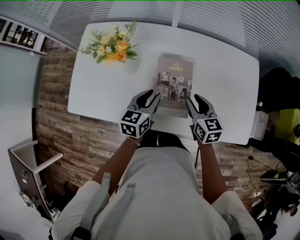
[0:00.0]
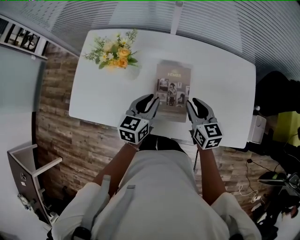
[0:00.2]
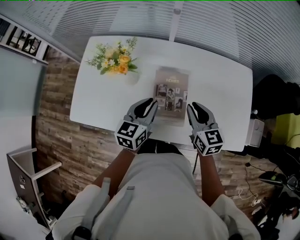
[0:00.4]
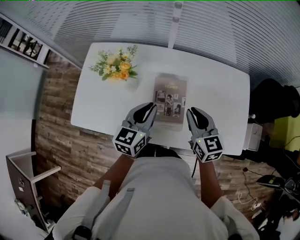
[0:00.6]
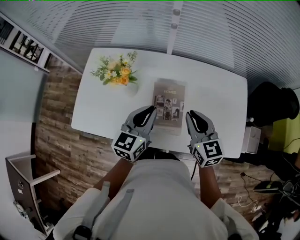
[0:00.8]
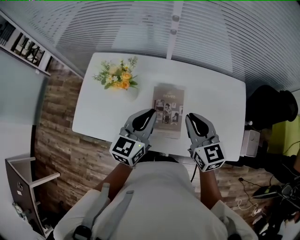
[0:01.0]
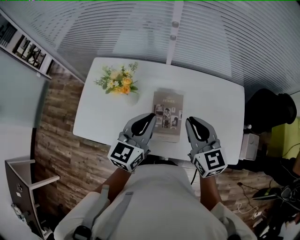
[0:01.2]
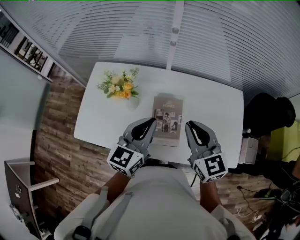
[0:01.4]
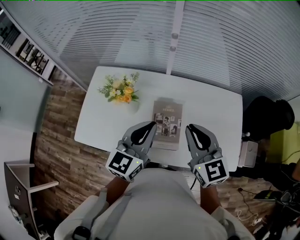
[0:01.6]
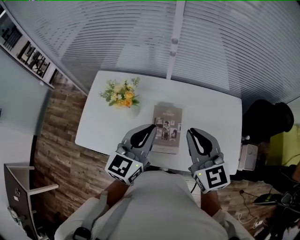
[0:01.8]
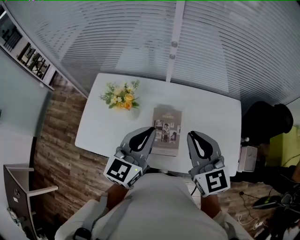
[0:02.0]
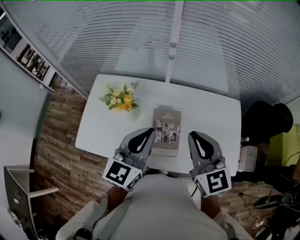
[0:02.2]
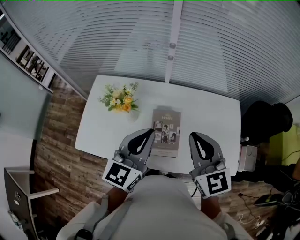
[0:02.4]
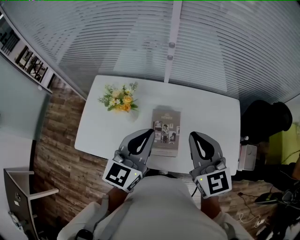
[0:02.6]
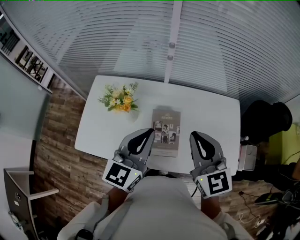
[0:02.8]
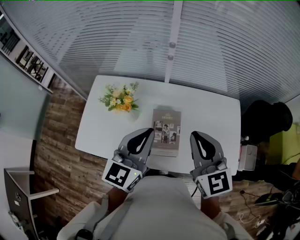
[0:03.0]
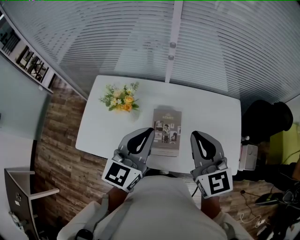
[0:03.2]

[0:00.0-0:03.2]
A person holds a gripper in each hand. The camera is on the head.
0:00.0 to 0:01.6: The grippers both shift upward by roughly 25 cm. The right gripper changes its angle by about 30 degrees, and closes. The left gripper turns by about 30 degrees, and closes up.
0:01.6 to 0:03.2: The right gripper ends up roughly 5 cm from where it was.

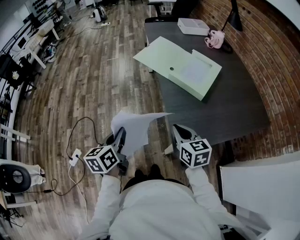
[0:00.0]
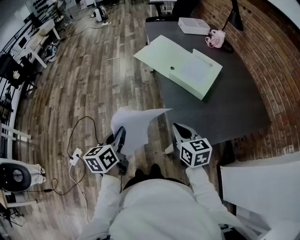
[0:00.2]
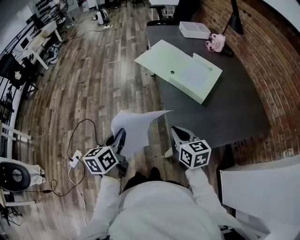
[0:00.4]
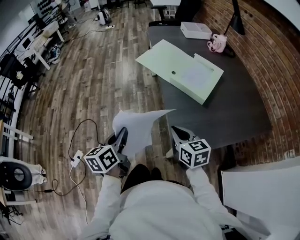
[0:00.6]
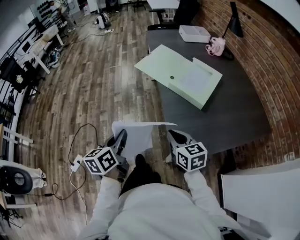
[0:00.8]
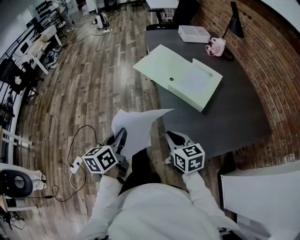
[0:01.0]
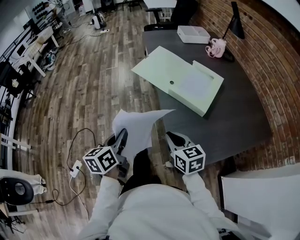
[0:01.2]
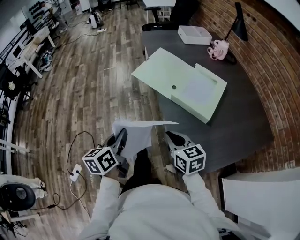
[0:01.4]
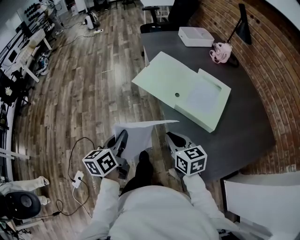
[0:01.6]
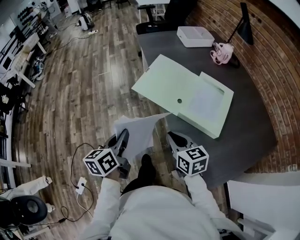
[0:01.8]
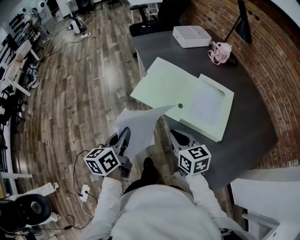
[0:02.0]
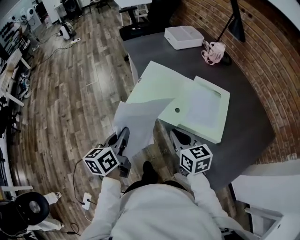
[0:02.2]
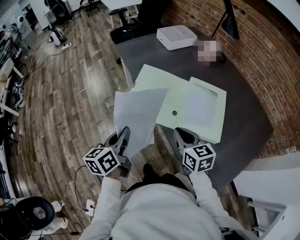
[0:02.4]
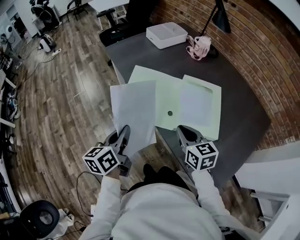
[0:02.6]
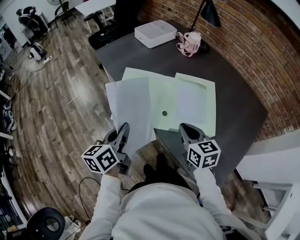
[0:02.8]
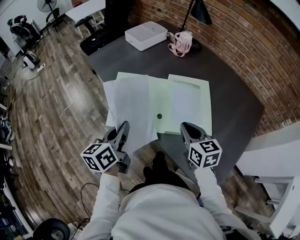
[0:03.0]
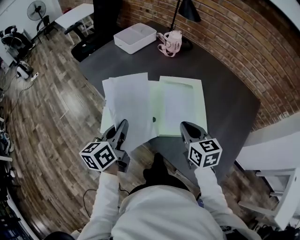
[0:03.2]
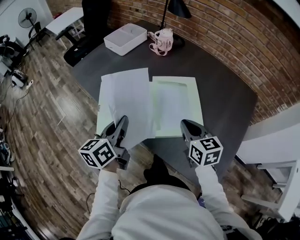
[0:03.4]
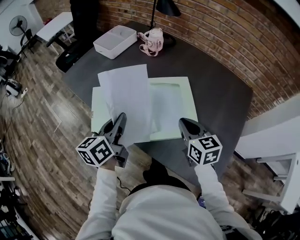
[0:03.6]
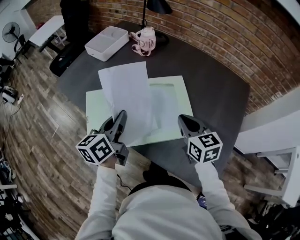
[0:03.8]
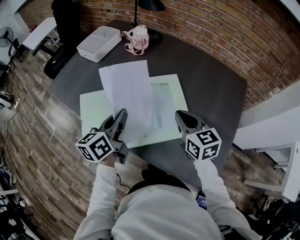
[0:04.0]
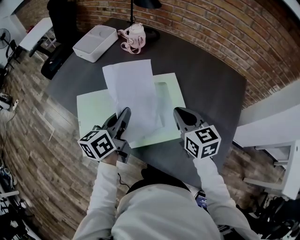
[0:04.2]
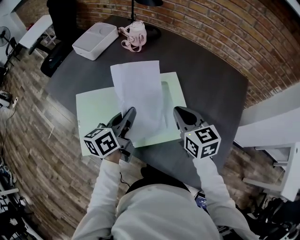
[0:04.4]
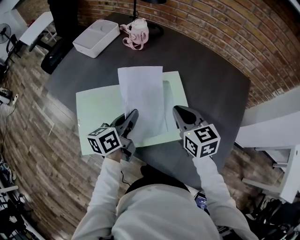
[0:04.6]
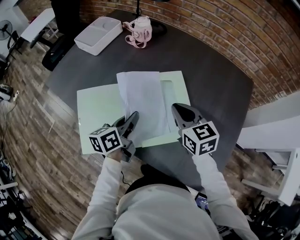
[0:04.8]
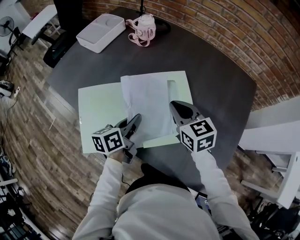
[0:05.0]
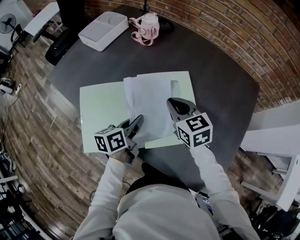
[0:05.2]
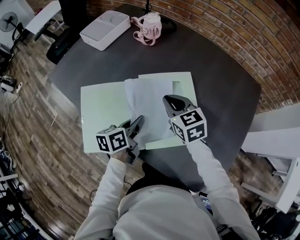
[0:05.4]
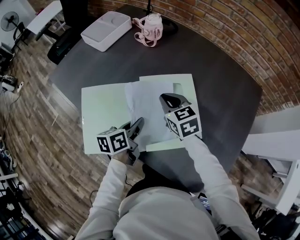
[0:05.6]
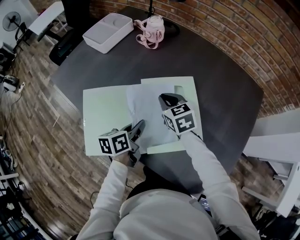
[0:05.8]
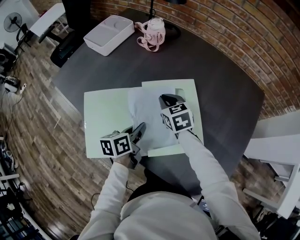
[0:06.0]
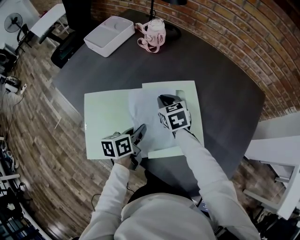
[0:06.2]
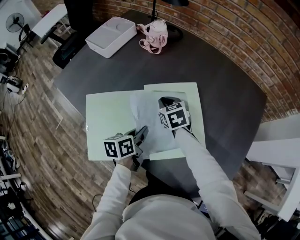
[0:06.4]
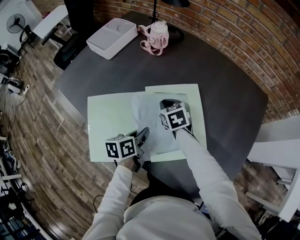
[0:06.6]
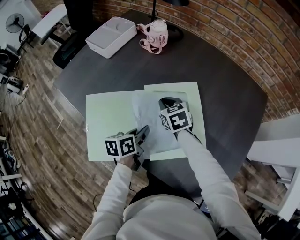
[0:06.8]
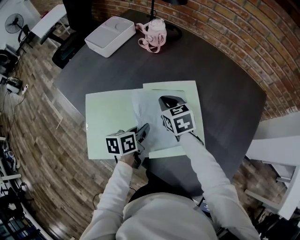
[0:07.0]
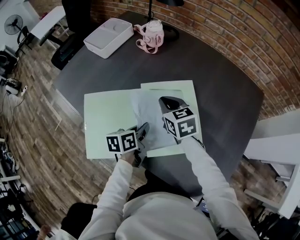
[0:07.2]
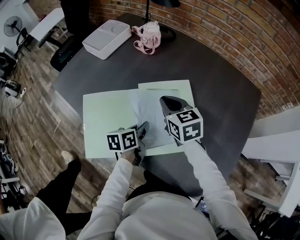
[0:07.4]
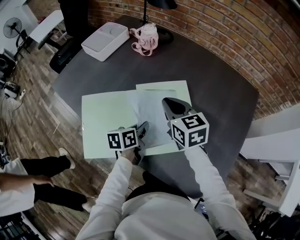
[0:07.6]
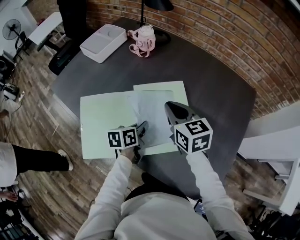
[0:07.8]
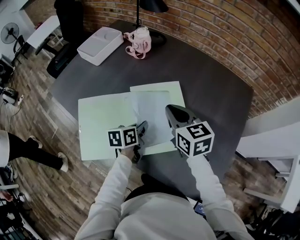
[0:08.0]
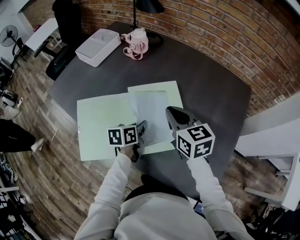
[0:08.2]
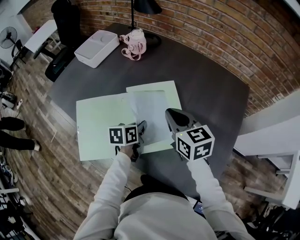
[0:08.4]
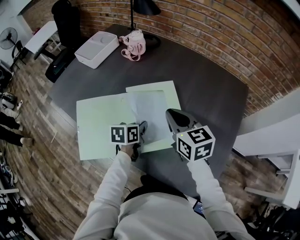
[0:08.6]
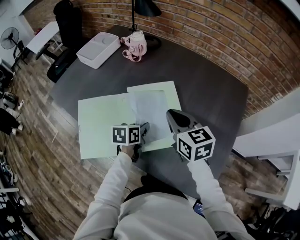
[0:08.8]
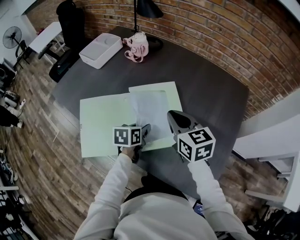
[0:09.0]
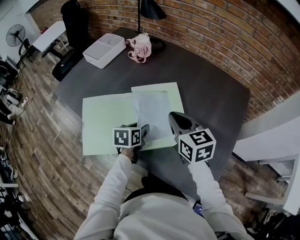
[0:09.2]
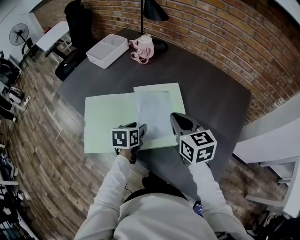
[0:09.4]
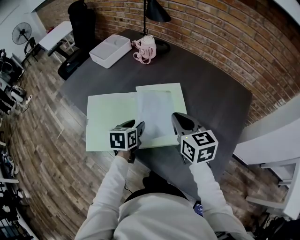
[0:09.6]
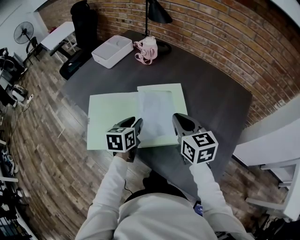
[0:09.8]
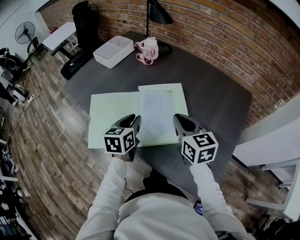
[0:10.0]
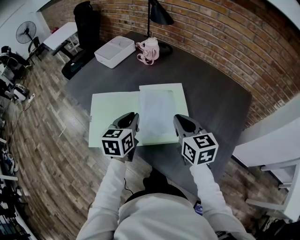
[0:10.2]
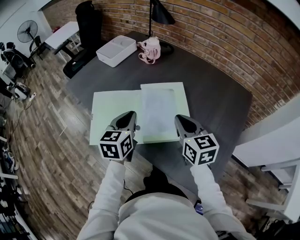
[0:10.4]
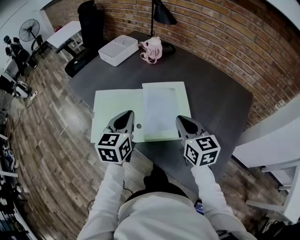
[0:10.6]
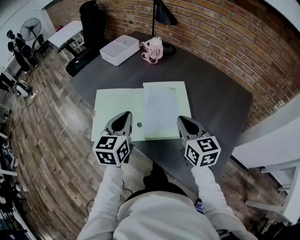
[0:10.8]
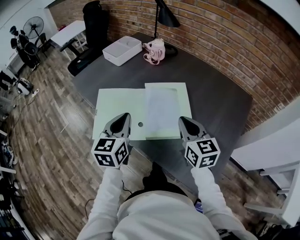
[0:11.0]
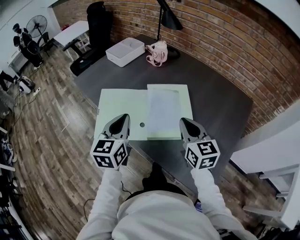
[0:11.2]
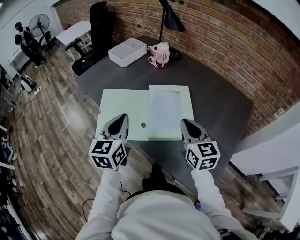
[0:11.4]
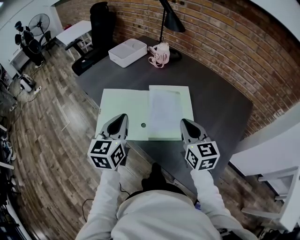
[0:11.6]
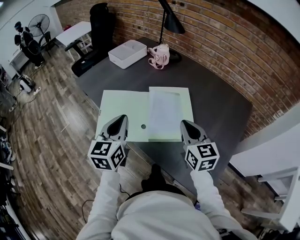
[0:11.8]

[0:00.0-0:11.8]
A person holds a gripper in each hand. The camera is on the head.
0:00.0 to 0:01.4: The grippers both shift forward by about 15 cm.
0:01.4 to 0:03.0: The left gripper ends up approximately 30 cm from where it was, and rotates about 30 degrees. Meanwhile the right gripper changes place by about 25 cm, and changes its angle by approximately 40 degrees.
0:03.0 to 0:04.4: The right gripper shifts about 15 cm forward and to the right; the left gripper heads forward and to the right, covering some 25 cm, and changes its angle by roughly 20 degrees.
0:04.4 to 0:06.0: The left gripper is displaced downward by roughly 10 cm, while the right gripper moves forward, downward and to the left, roughly 20 cm.
0:06.0 to 0:07.4: The right gripper shifts approximately 5 cm upward.
0:07.4 to 0:08.8: The right gripper shifts some 15 cm to the right, backward and upward. Meanwhile the left gripper is displaced to the right by roughly 5 cm.
0:08.8 to 0:10.4: The left gripper is displaced upward and to the left by some 15 cm, changes its angle by about 30 degrees, and opens, then closes once more. The right gripper moves backward, some 5 cm.
0:10.4 to 0:11.8: The left gripper moves to the left, backward and upward, some 10 cm.

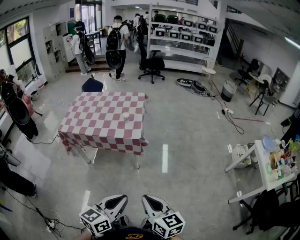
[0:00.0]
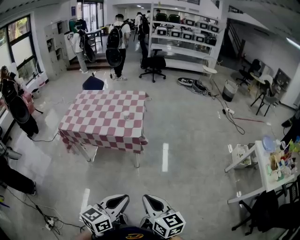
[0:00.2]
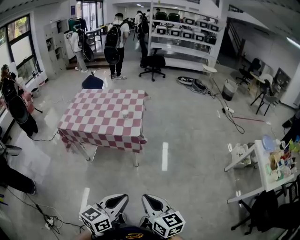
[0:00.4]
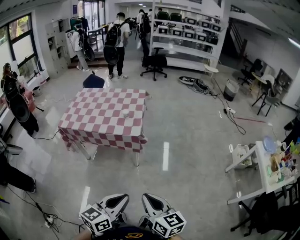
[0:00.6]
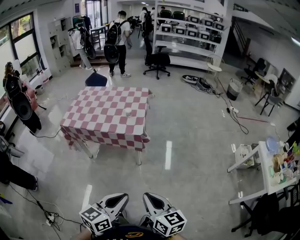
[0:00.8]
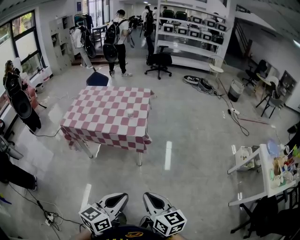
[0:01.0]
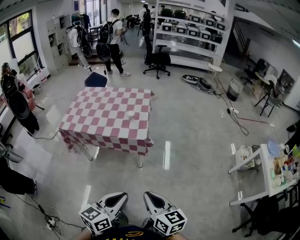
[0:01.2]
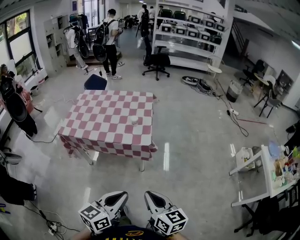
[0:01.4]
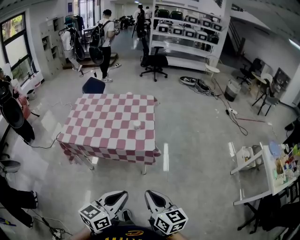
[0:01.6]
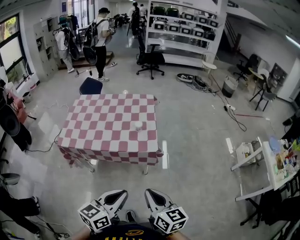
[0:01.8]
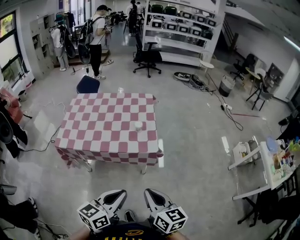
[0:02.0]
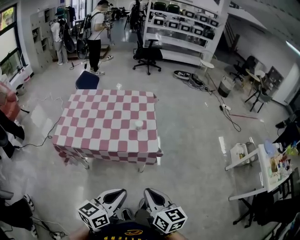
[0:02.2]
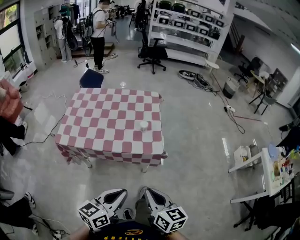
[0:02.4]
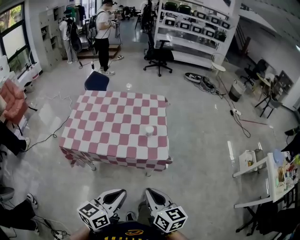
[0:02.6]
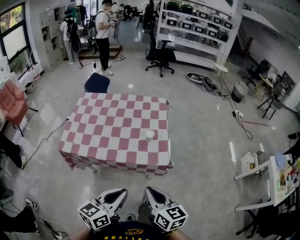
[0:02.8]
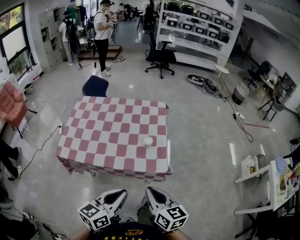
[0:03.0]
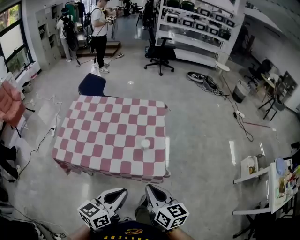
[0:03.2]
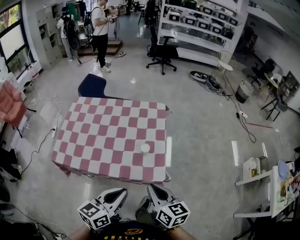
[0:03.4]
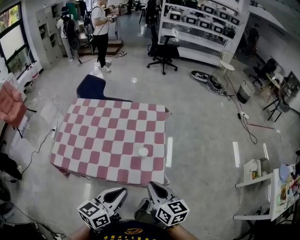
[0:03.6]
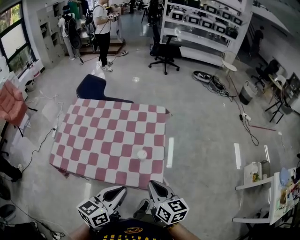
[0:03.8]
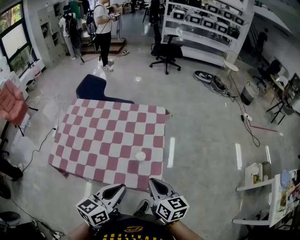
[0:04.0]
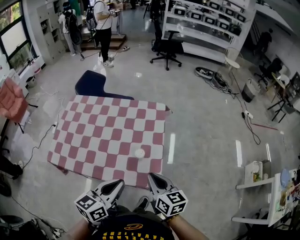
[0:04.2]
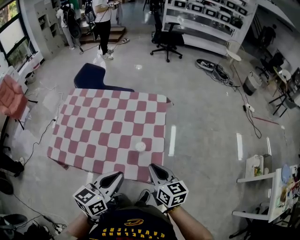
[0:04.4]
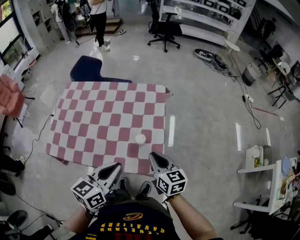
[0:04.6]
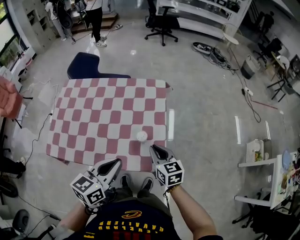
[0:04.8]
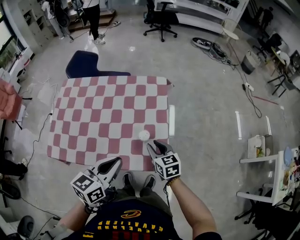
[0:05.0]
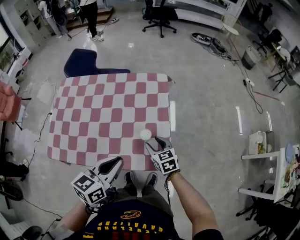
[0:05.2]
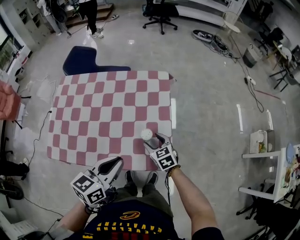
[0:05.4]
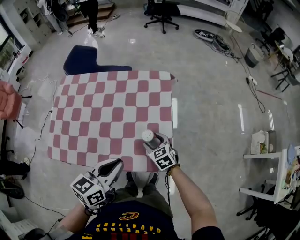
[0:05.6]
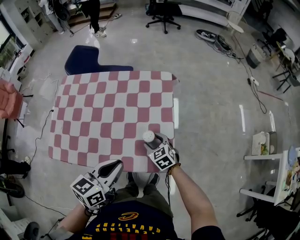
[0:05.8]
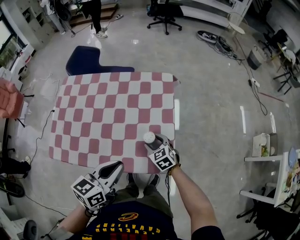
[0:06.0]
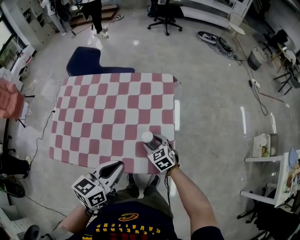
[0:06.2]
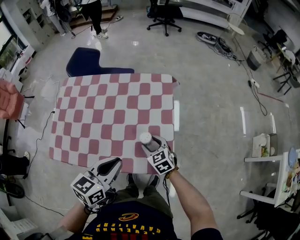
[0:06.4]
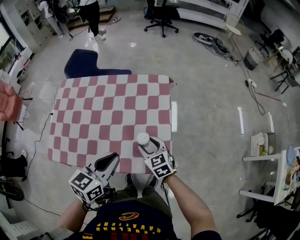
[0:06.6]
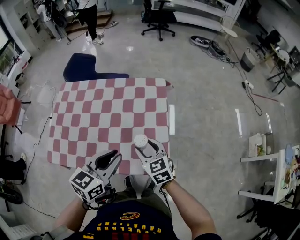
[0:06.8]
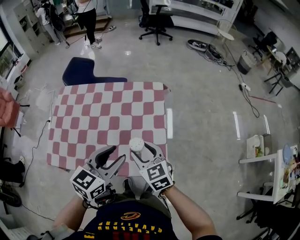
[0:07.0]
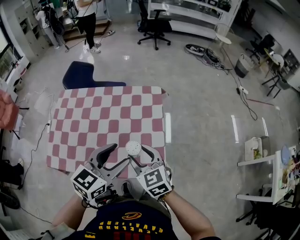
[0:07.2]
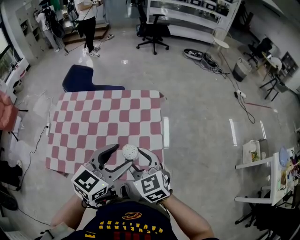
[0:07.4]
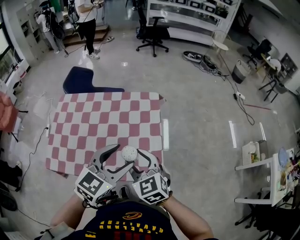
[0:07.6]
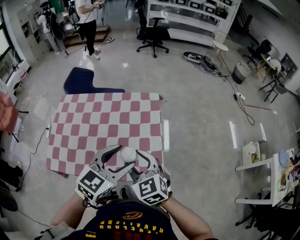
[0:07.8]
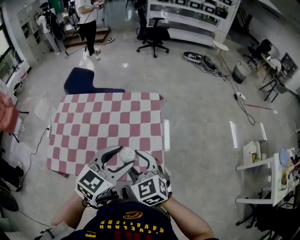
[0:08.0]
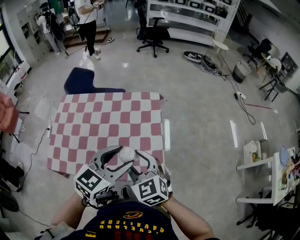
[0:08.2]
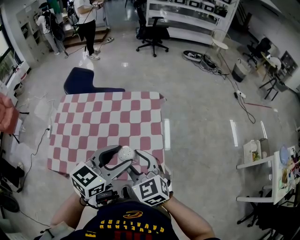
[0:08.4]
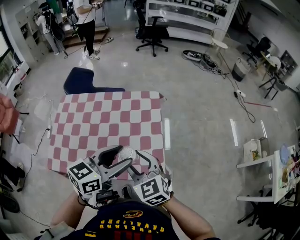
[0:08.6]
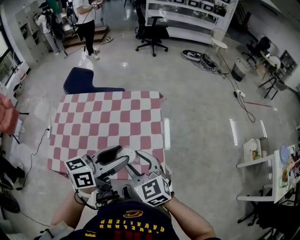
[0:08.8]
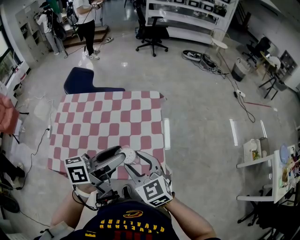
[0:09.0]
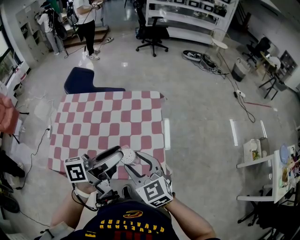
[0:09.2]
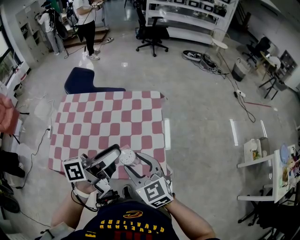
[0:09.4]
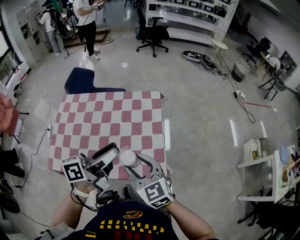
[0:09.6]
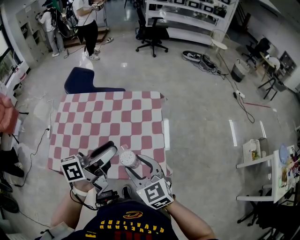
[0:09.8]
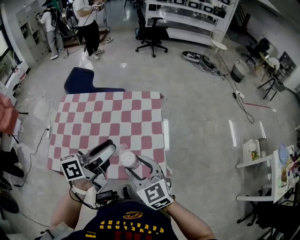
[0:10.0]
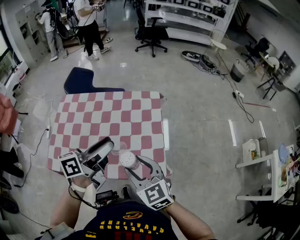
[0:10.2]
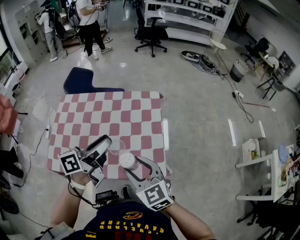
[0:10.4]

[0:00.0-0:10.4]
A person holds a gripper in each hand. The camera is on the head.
0:00.0 to 0:01.4: The grippers both shift forward and to the left by roughly 15 cm.
0:01.4 to 0:03.0: The two grippers go some 25 cm forward and to the left.
0:03.0 to 0:04.4: The grippers both shift forward by roughly 20 cm.
0:04.4 to 0:06.0: The right gripper travels downward and forward by about 20 cm, changes its angle by approximately 40 degrees, and opens up, while the left gripper changes place by approximately 10 cm.
0:06.0 to 0:07.4: The right gripper goes roughly 25 cm upward, while the left gripper heads upward, covering about 10 cm, swivels some 30 degrees, and opens.
0:07.4 to 0:09.0: The left gripper rotates around the line of its fingers by some 50 degrees, counterclockwise from behind.
0:09.0 to 0:10.4: The left gripper moves to the left, approximately 5 cm.
